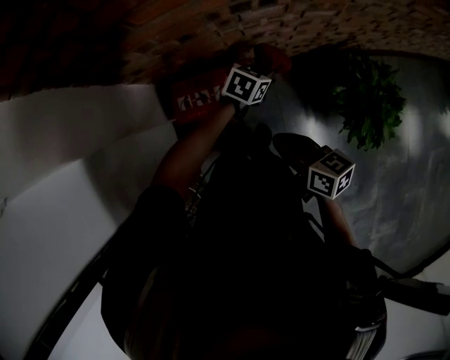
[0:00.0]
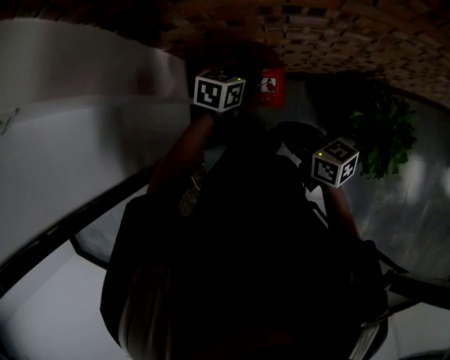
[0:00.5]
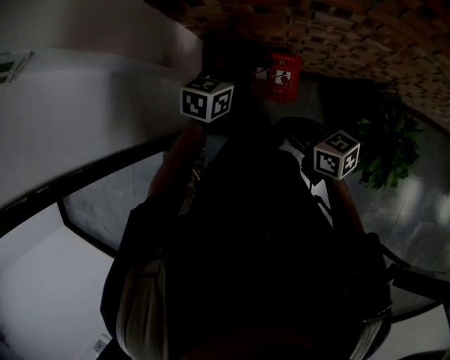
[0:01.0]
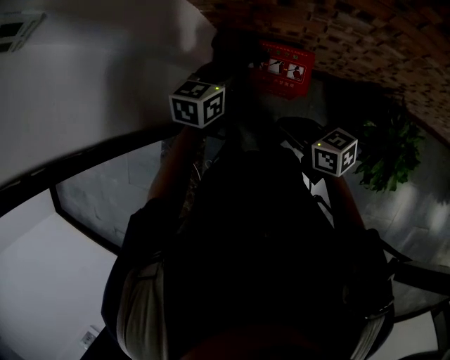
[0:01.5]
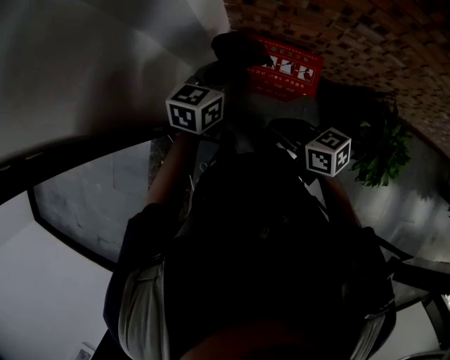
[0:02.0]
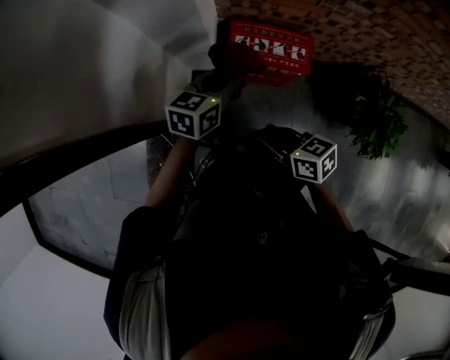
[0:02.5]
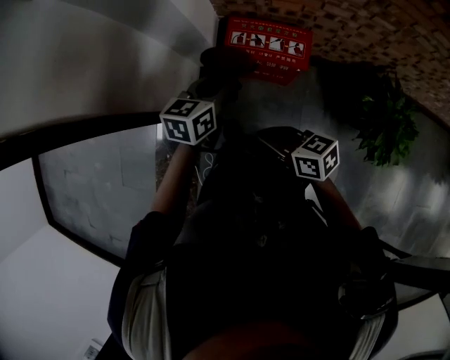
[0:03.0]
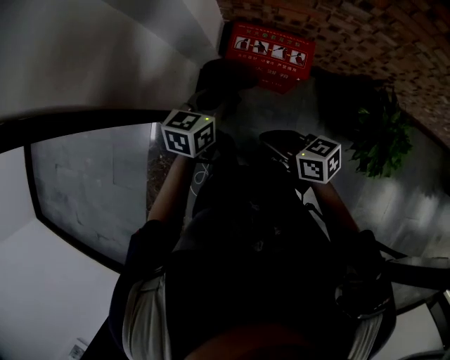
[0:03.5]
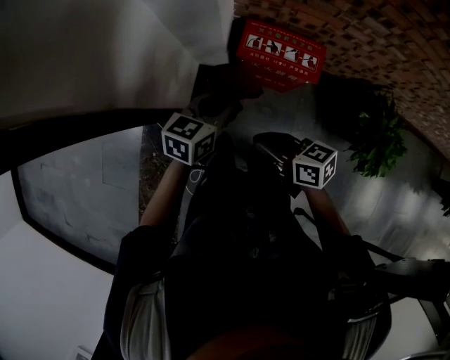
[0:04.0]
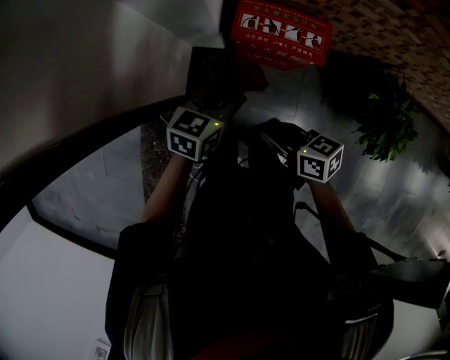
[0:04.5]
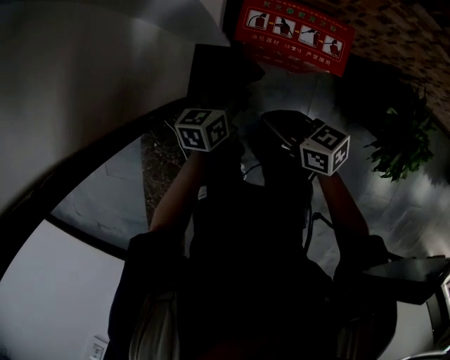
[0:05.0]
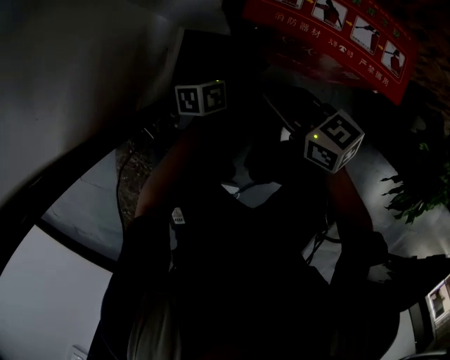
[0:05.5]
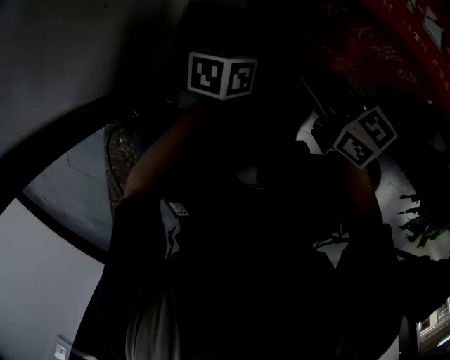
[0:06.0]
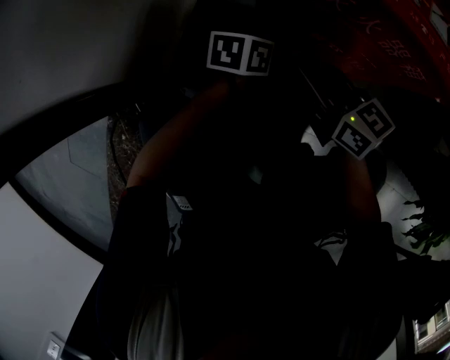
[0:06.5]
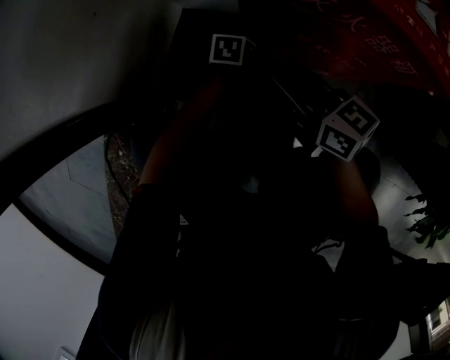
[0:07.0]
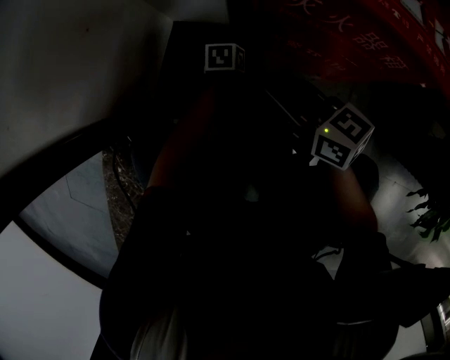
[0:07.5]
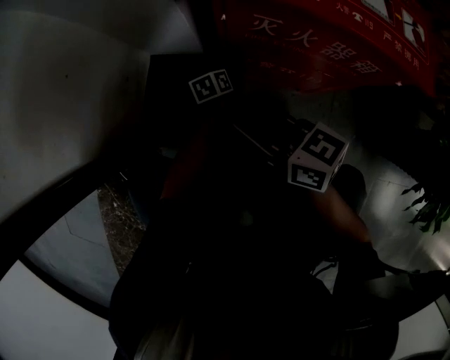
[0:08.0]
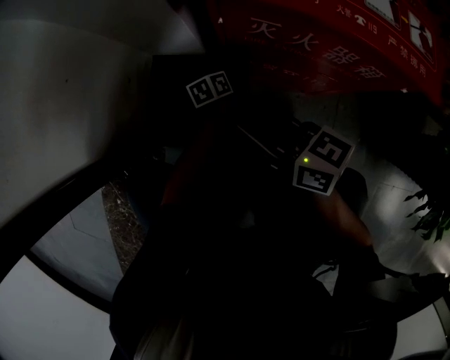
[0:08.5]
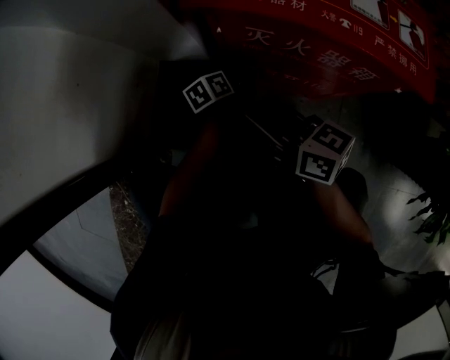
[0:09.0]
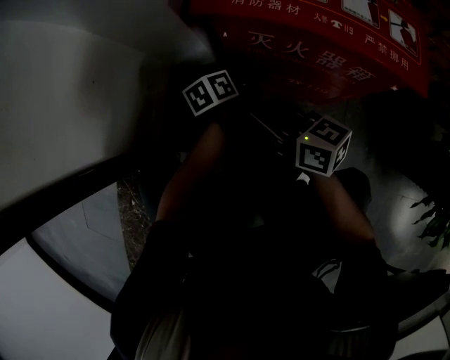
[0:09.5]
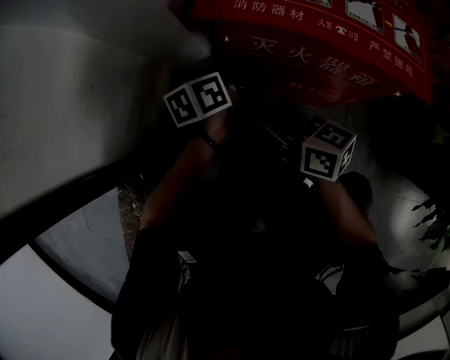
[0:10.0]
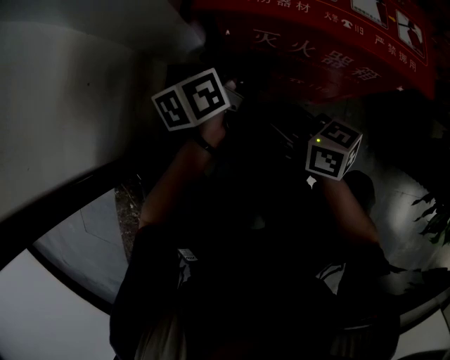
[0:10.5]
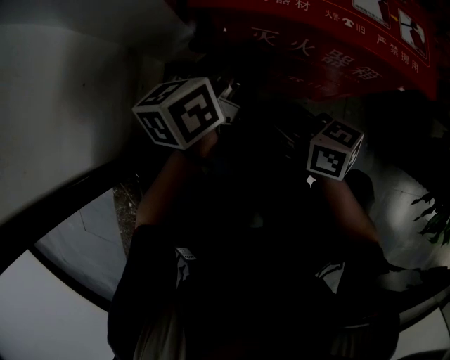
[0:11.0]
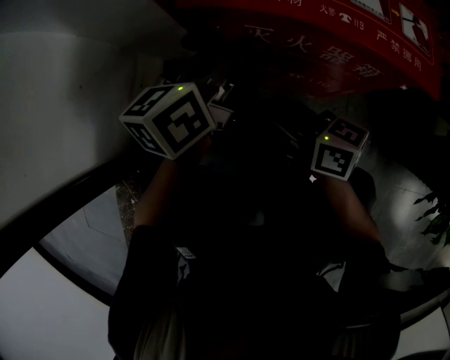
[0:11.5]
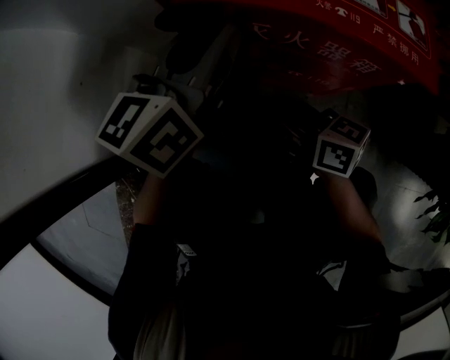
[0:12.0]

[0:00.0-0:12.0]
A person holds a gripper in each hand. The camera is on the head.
0:00.0 to 0:02.0: The right gripper shifts by roughly 25 cm, and swivels some 30 degrees. The left gripper ends up roughly 40 cm from where it was, and changes its angle by approximately 40 degrees.
0:02.0 to 0:04.0: The left gripper goes some 15 cm backward, to the left and downward, while the right gripper travels to the left and backward by approximately 10 cm.
0:04.0 to 0:06.0: Both grippers travel together downward, some 50 cm. The left gripper changes its angle by roughly 20 degrees.
0:06.0 to 0:08.0: The right gripper shifts by about 5 cm; the left gripper travels downward by some 20 cm, and swivels roughly 20 degrees.
0:08.0 to 0:10.0: The left gripper heads upward, covering some 25 cm.
0:10.0 to 0:12.0: The left gripper goes some 20 cm upward, and changes its angle by roughly 40 degrees.

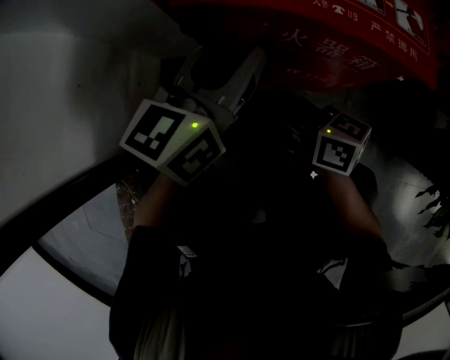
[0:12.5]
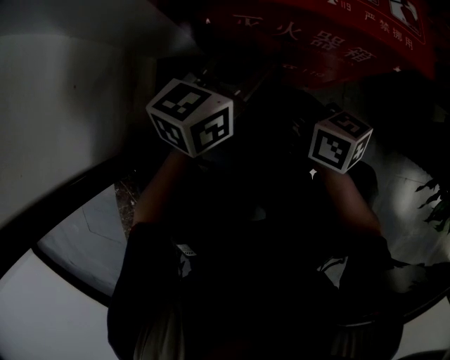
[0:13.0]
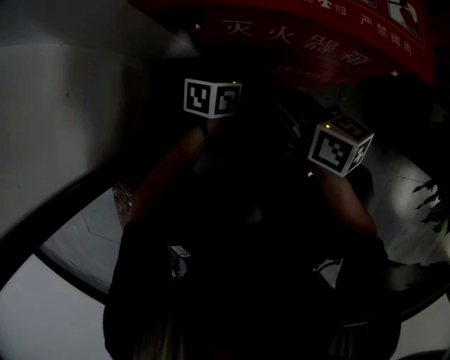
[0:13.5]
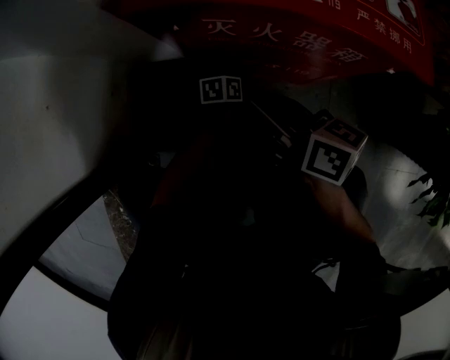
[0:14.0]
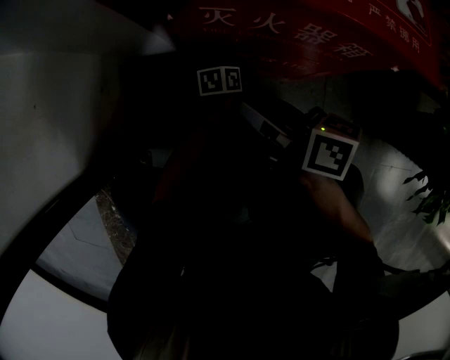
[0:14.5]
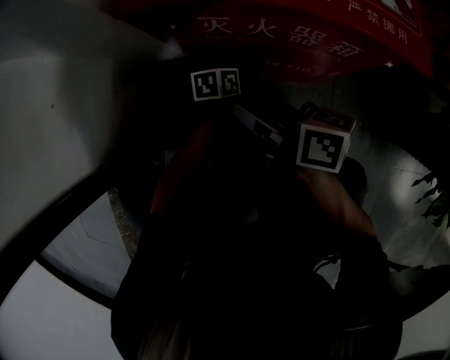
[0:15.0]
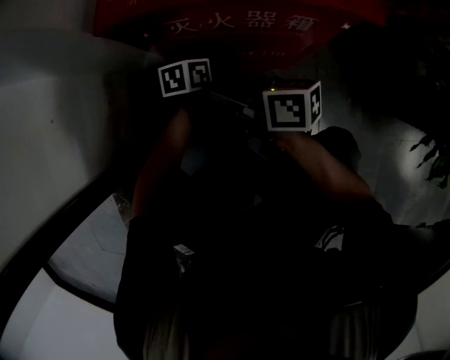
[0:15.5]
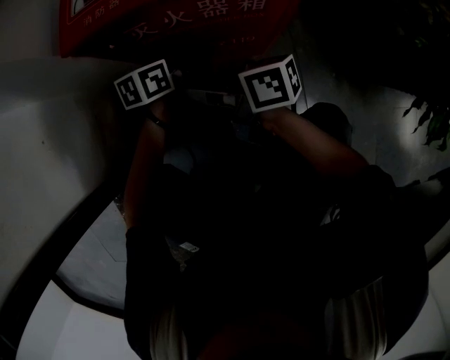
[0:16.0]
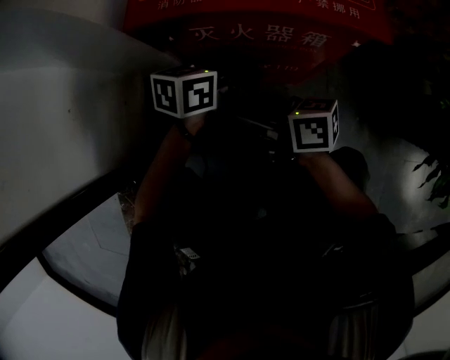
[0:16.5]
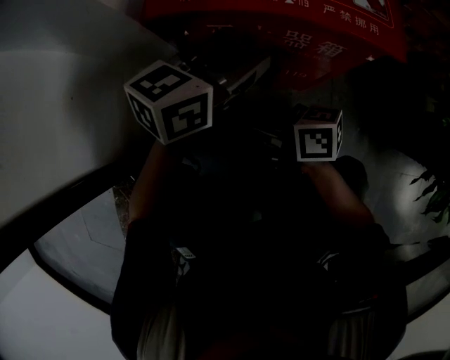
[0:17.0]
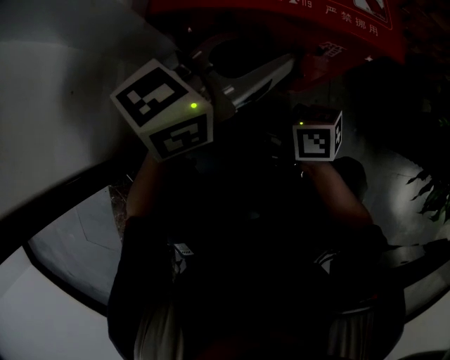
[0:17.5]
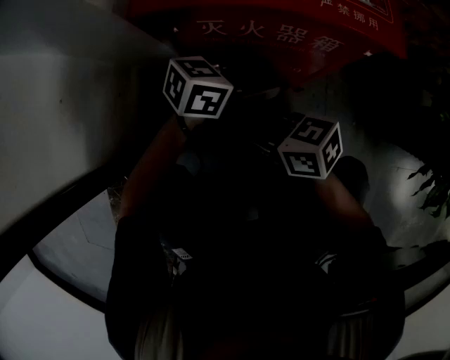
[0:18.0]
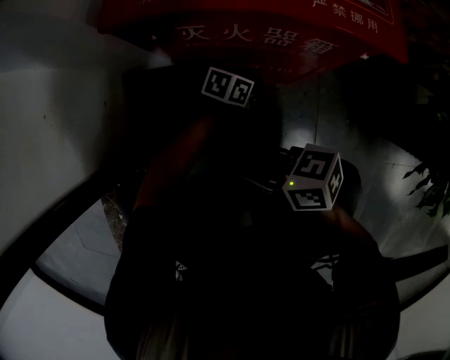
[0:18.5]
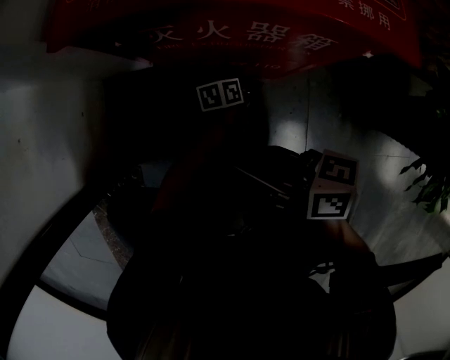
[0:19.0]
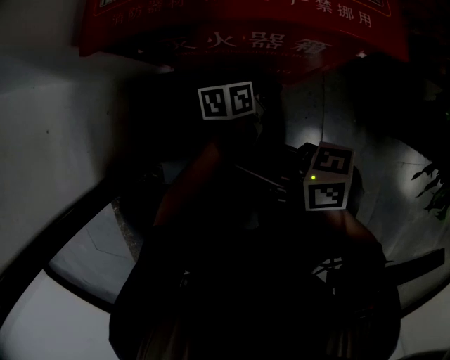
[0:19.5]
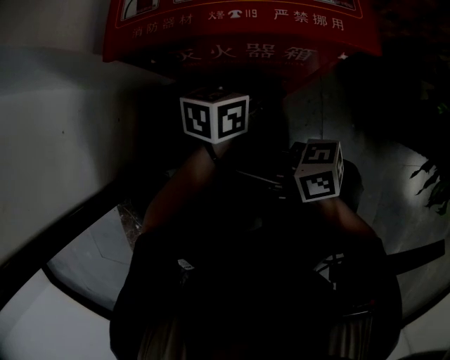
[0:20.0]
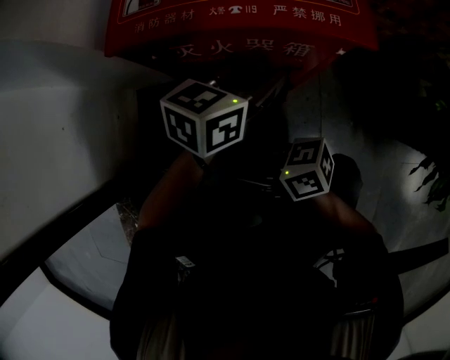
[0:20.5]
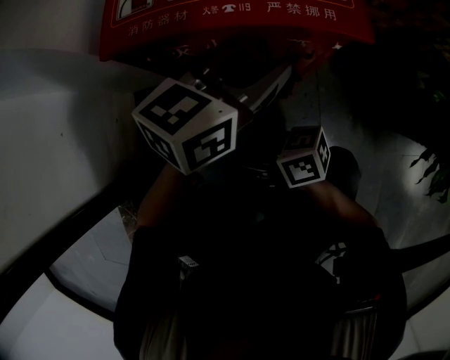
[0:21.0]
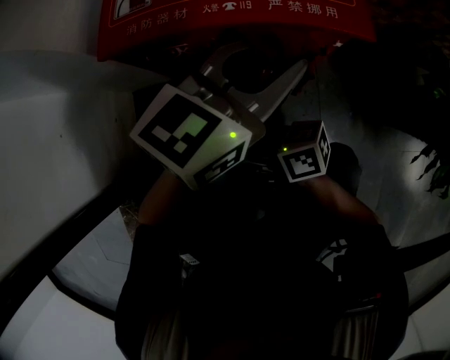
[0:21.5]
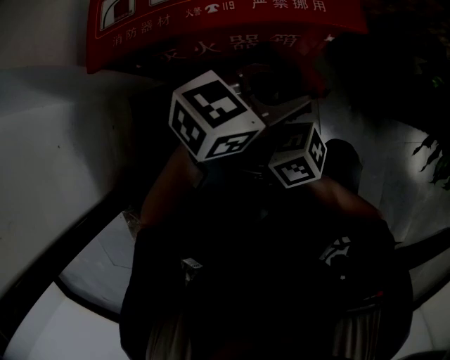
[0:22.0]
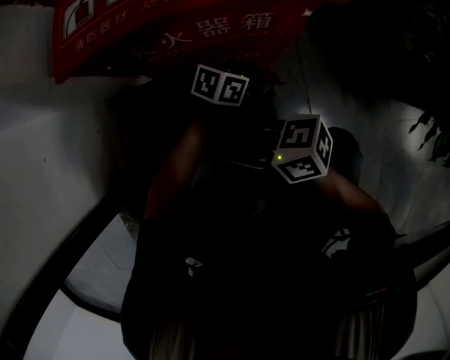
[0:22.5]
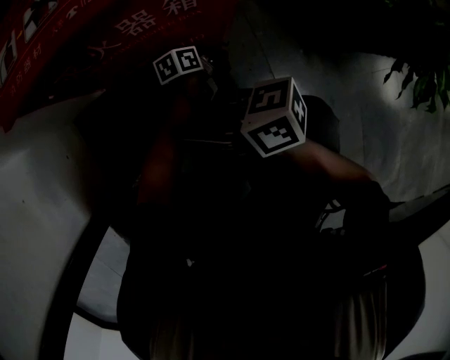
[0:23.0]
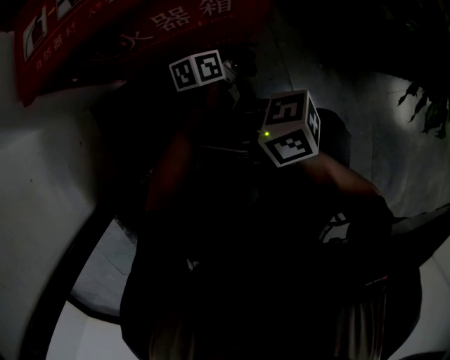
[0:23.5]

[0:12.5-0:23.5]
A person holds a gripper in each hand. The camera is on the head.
0:12.5 to 0:14.5: The left gripper heads downward, covering about 40 cm, and angles its fingers downward, by approximately 40 degrees.
0:14.5 to 0:16.0: The left gripper heads upward, covering some 20 cm.
0:16.0 to 0:18.0: The right gripper ends up some 5 cm from where it was, and turns by some 30 degrees; the left gripper travels upward and back again, about 25 cm each way, and rotates approximately 40 degrees.
0:18.0 to 0:20.0: The left gripper travels downward and back again, roughly 30 cm each way, and changes its angle by about 30 degrees. The right gripper changes place by about 5 cm, and rotates approximately 20 degrees.
0:20.0 to 0:21.5: The left gripper travels upward by about 20 cm, and swivels roughly 30 degrees.
0:21.5 to 0:23.5: The left gripper travels downward by about 35 cm, and rolls counterclockwise, seen from behind, by roughly 50 degrees.

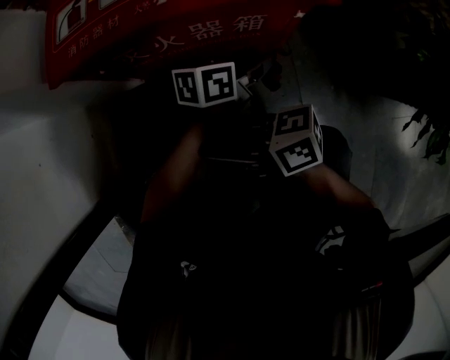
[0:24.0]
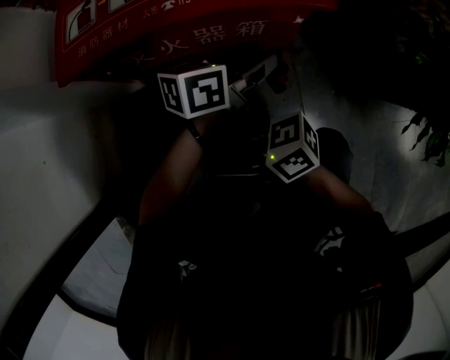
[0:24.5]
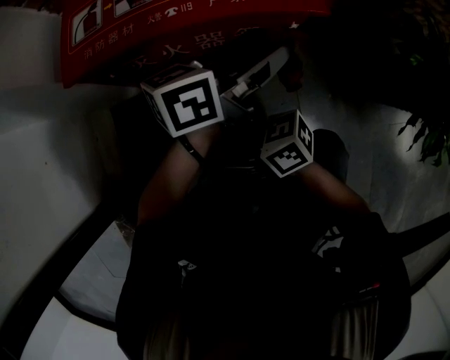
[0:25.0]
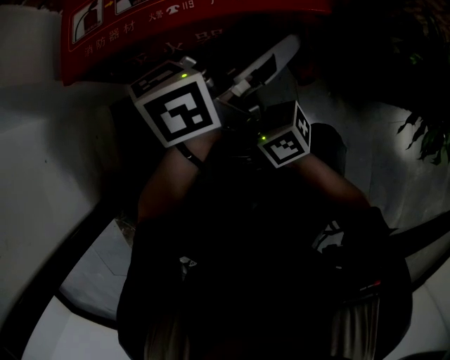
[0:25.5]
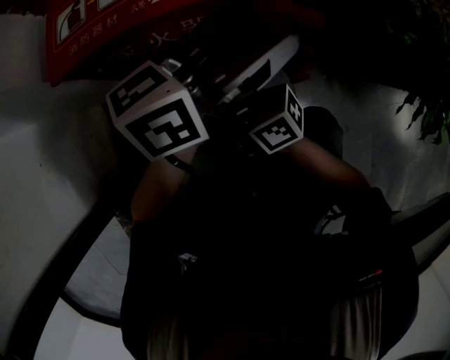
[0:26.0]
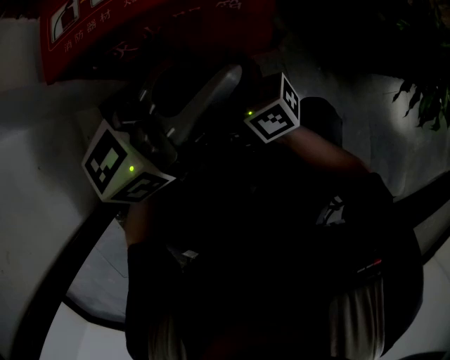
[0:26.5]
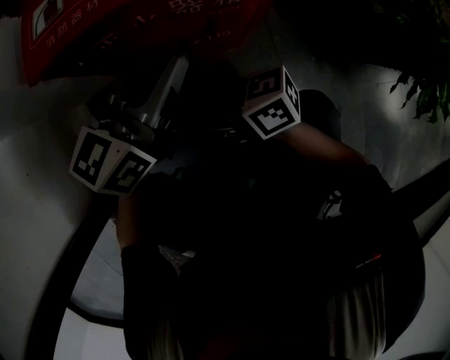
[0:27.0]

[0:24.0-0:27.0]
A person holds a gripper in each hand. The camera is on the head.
0:24.0 to 0:25.5: The left gripper is displaced upward by approximately 20 cm, and changes its angle by about 30 degrees.
0:25.5 to 0:27.0: The left gripper moves approximately 15 cm, and changes its angle by approximately 30 degrees.
